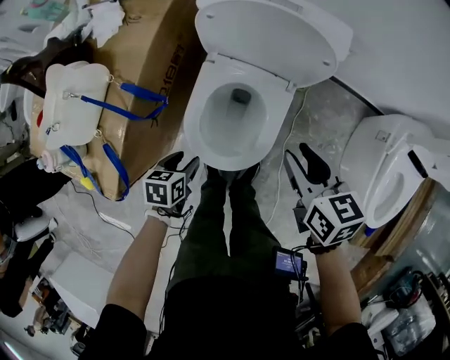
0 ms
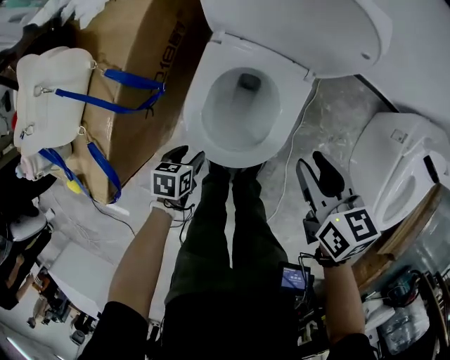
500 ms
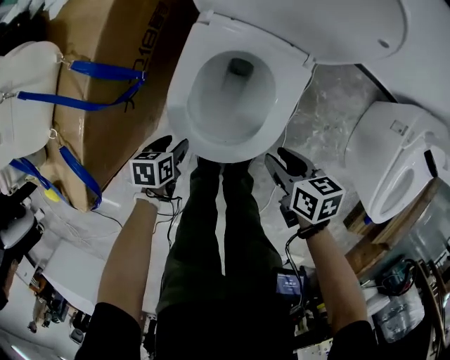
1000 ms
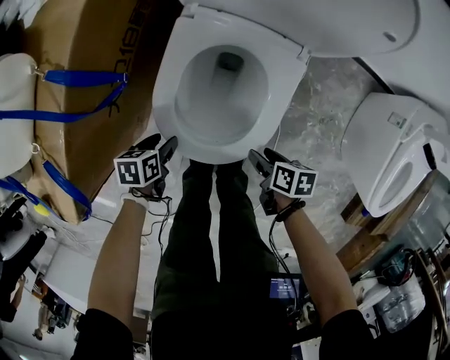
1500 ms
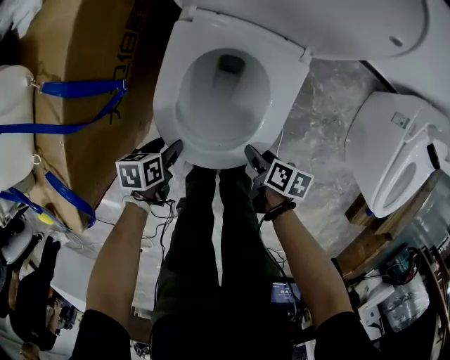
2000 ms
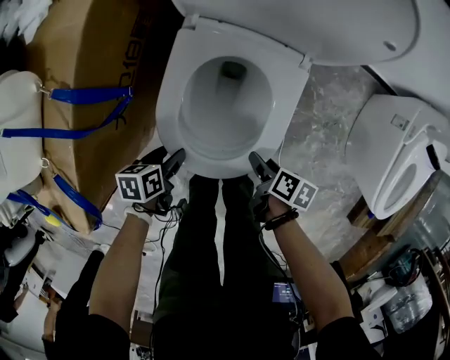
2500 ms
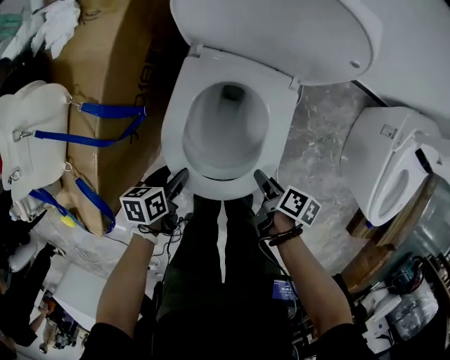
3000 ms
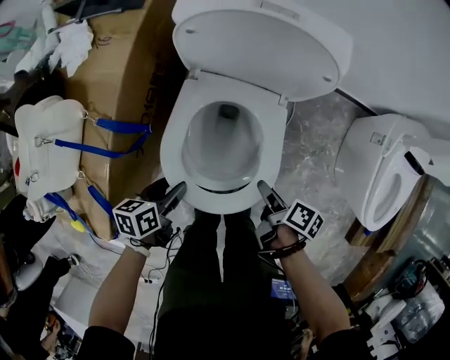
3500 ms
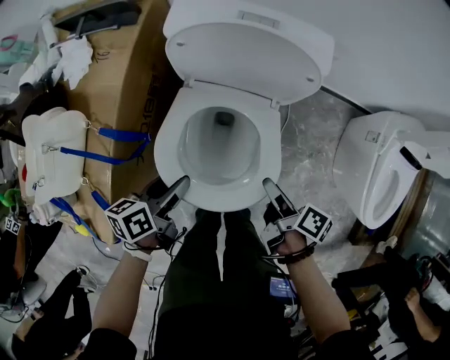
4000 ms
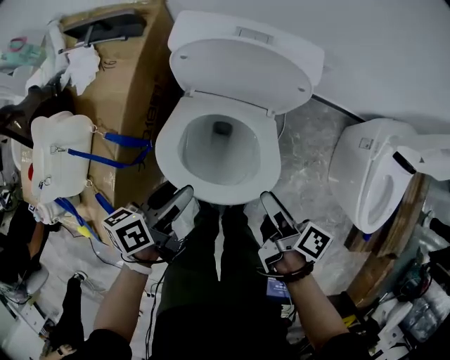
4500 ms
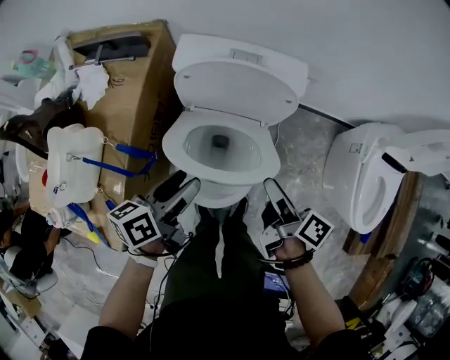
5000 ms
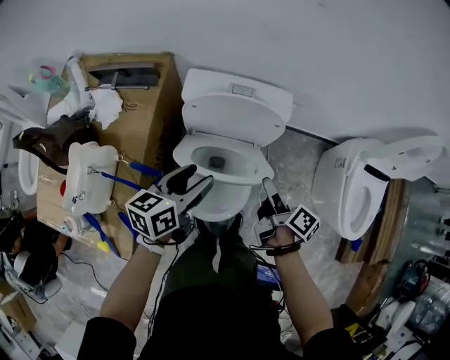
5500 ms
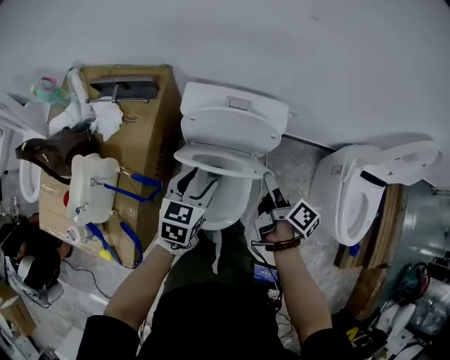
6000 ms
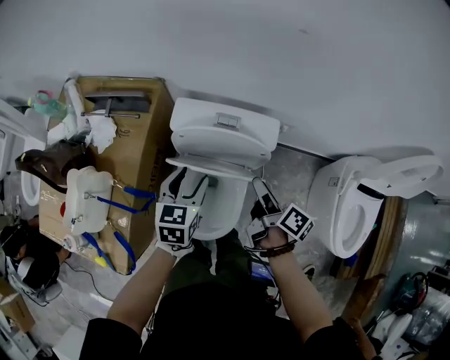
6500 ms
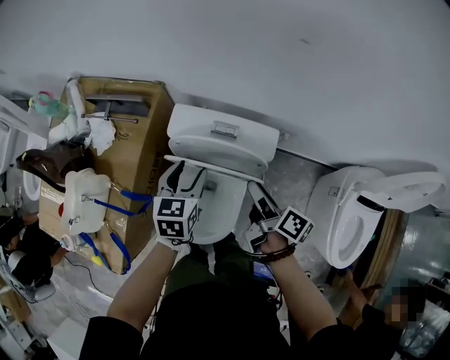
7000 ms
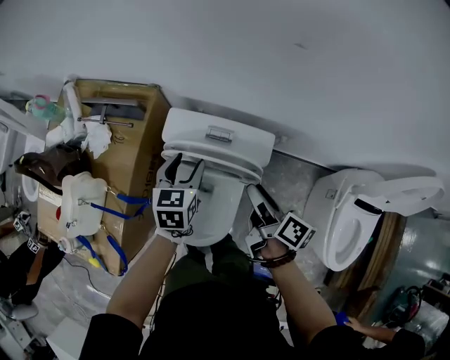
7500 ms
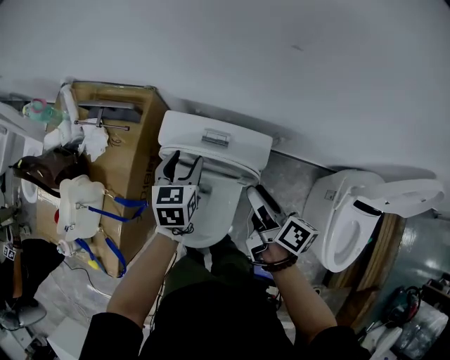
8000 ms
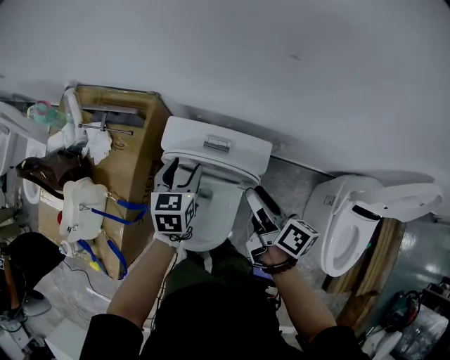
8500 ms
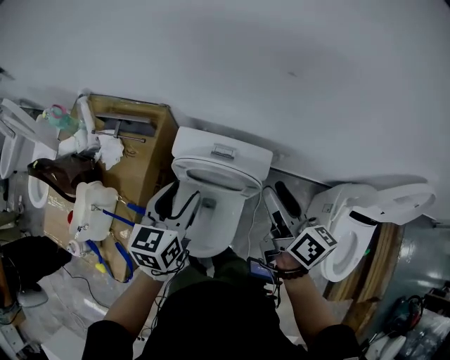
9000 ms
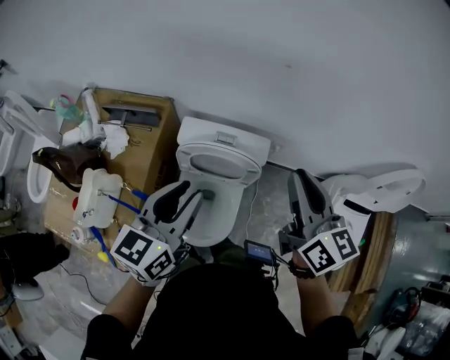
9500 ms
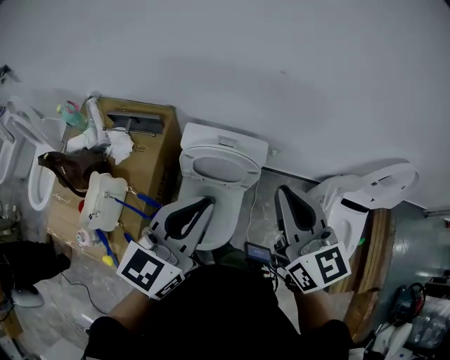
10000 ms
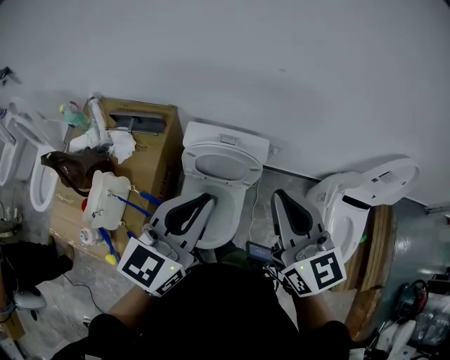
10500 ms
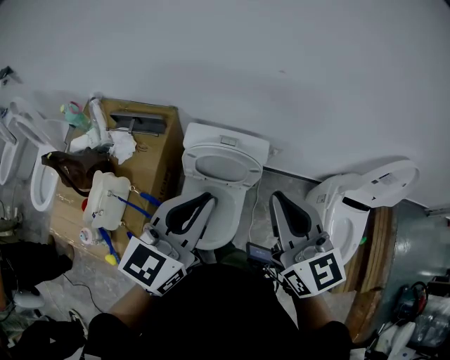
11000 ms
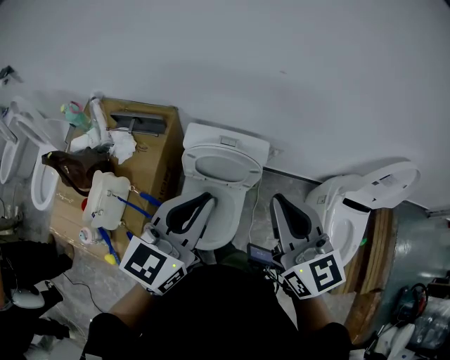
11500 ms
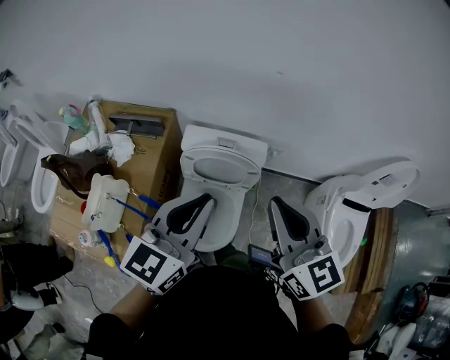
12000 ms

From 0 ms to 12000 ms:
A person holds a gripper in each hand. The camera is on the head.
From 0 ms to 2000 ms: The right gripper travels downward by approximately 35 cm, rolls clockwise, seen from behind, by approximately 40 degrees, and opens up. The left gripper moves downward, some 20 cm.
From 2000 ms to 4000 ms: The grippers both shift upward by some 25 cm. The right gripper rotates about 30 degrees. The left gripper turns by approximately 30 degrees.
From 4000 ms to 6000 ms: The two grippers go roughly 20 cm upward and forward. The left gripper rotates around the line of its fingers by roughly 50 degrees, clockwise from behind; the right gripper swivels roughly 20 degrees.
From 6000 ms to 8000 ms: The left gripper moves forward, roughly 15 cm, and rotates roughly 20 degrees, while the right gripper heads forward and upward, covering some 10 cm, and rotates about 20 degrees.
From 8000 ms to 10000 ms: The right gripper shifts roughly 30 cm upward, rolls counterclockwise, seen from behind, by roughly 60 degrees, and closes up. The left gripper goes some 40 cm upward and backward, points its fingers roughly 30 degrees further upward, and closes up.
From 10000 ms to 12000 ms: The grippers stay close to where they were, moving slightly.

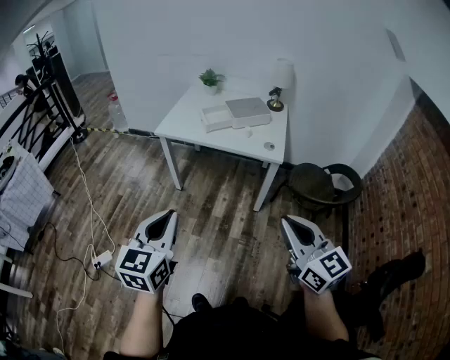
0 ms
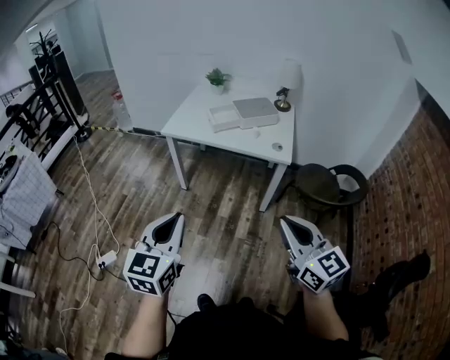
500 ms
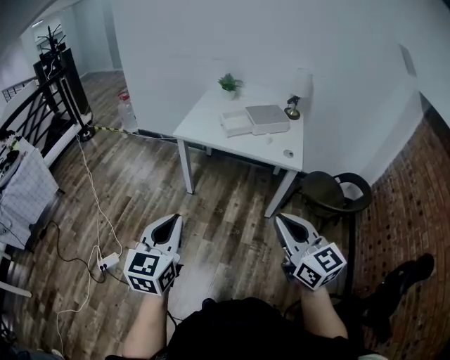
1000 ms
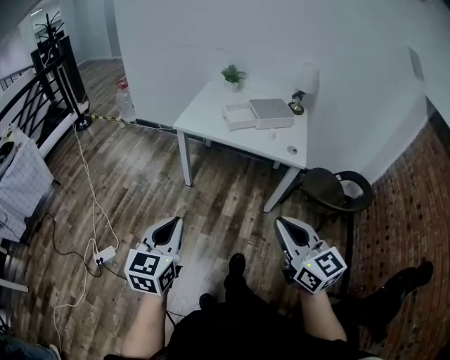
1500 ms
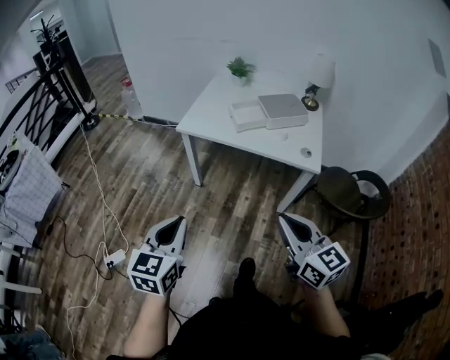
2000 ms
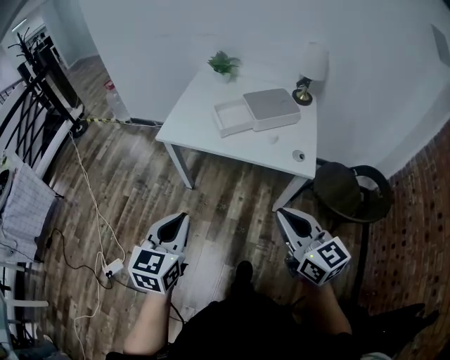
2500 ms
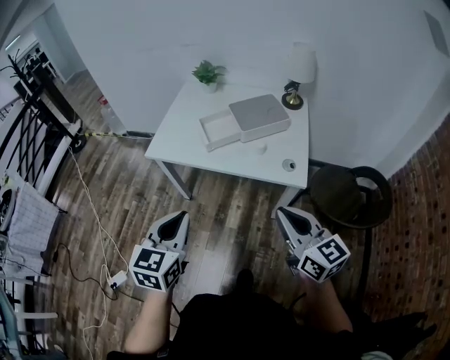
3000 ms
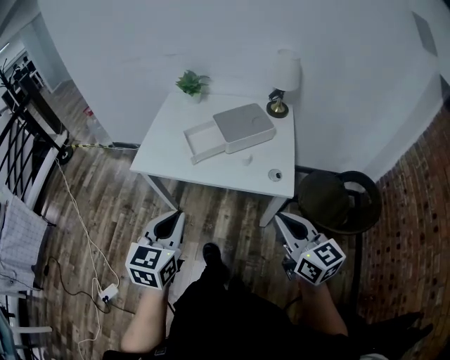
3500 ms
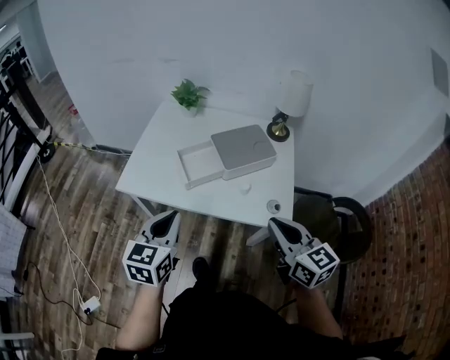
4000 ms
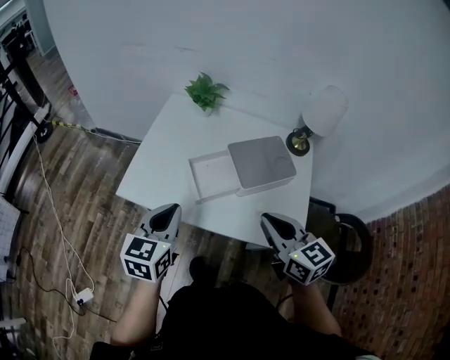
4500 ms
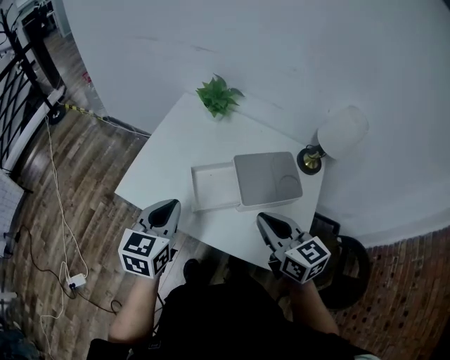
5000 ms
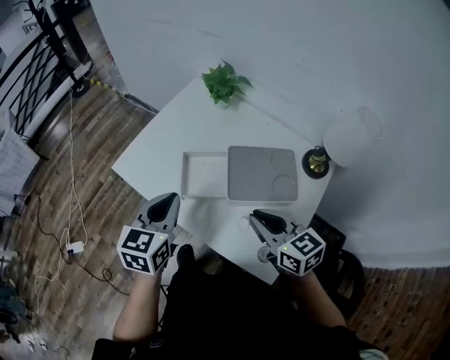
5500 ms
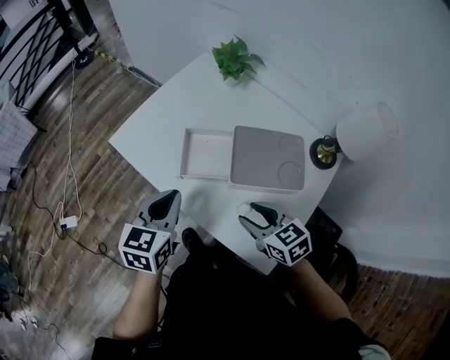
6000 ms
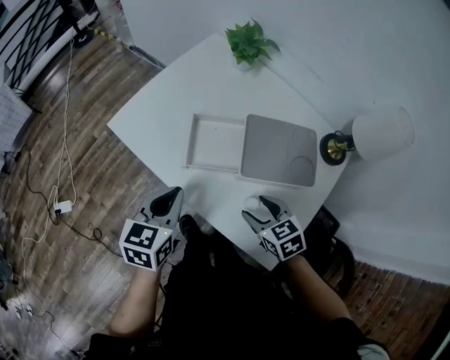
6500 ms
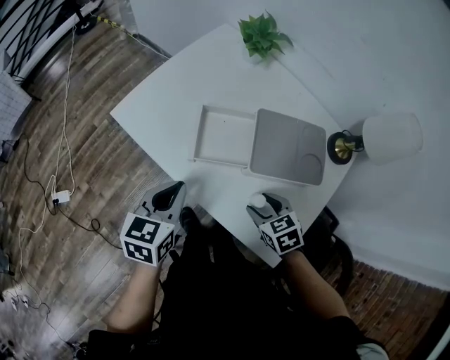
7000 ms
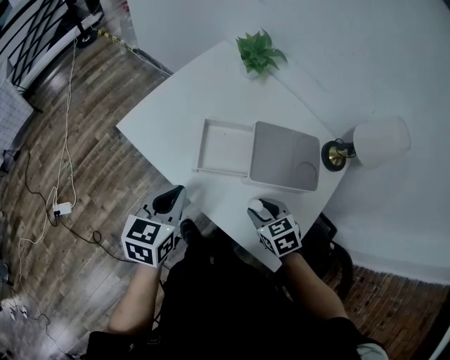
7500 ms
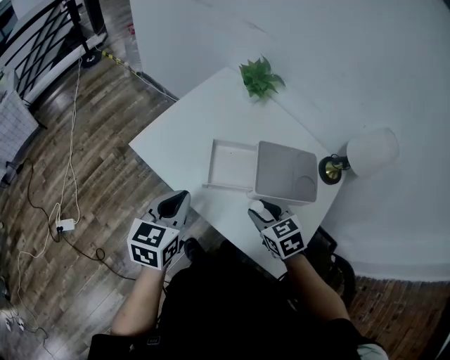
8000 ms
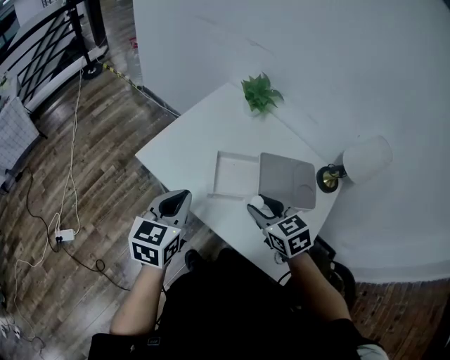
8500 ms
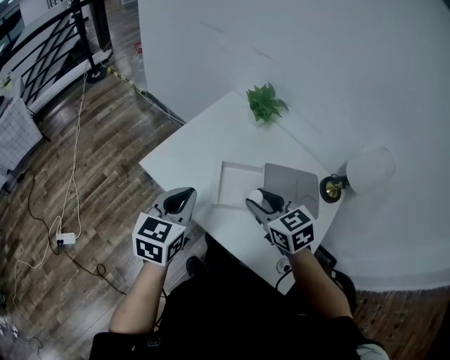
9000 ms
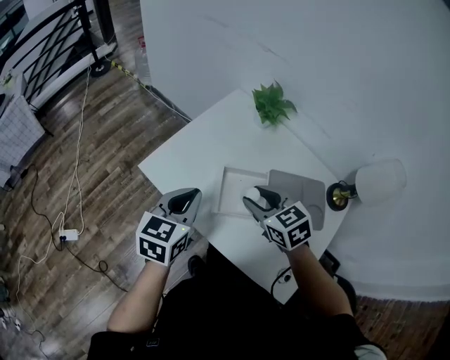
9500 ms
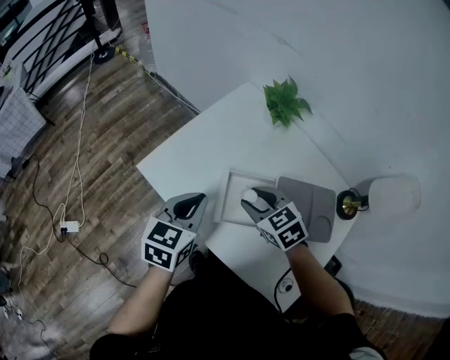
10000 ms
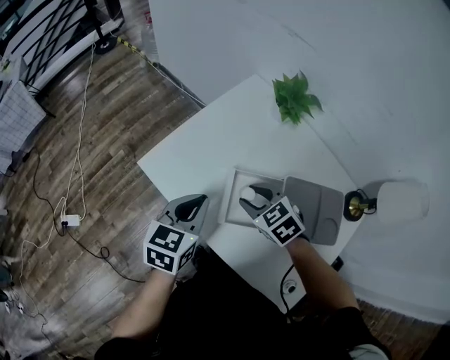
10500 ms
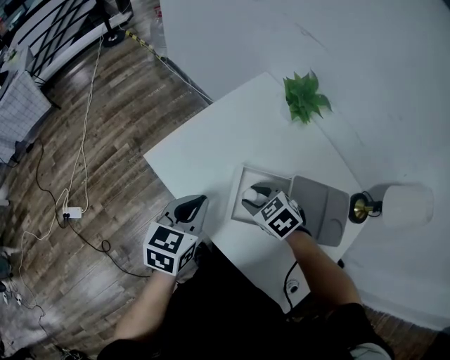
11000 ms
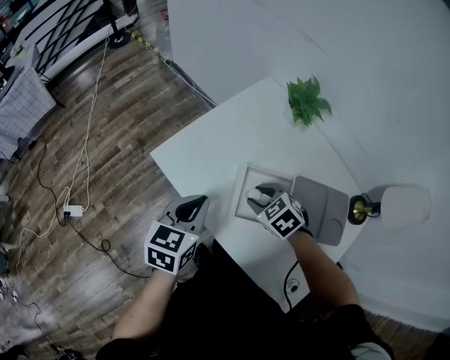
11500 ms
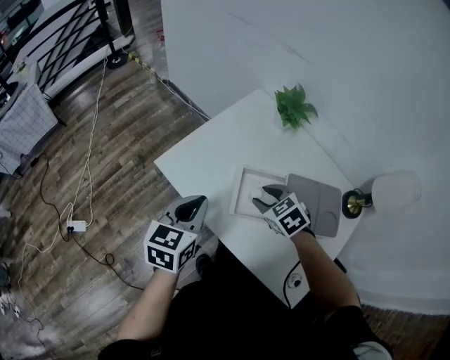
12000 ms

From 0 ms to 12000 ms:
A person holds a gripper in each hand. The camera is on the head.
From 0 ms to 2000 ms: The right gripper goes roughly 20 cm forward and to the left. Meanwhile the left gripper goes approximately 20 cm forward, to the left and downward.
From 2000 ms to 4000 ms: Both grippers move forward and to the right, about 40 cm.
From 4000 ms to 6000 ms: The right gripper moves roughly 30 cm, turns by roughly 50 degrees, and opens. The left gripper changes place by roughly 20 cm, and turns by about 30 degrees.
From 6000 ms to 8000 ms: The two grippers go some 5 cm to the left. The right gripper reaches approximately 10 cm downward, then returns.
From 8000 ms to 10000 ms: The right gripper is displaced forward and to the left by some 20 cm, while the left gripper shifts approximately 10 cm forward.
From 10000 ms to 12000 ms: The left gripper shifts about 5 cm to the left.

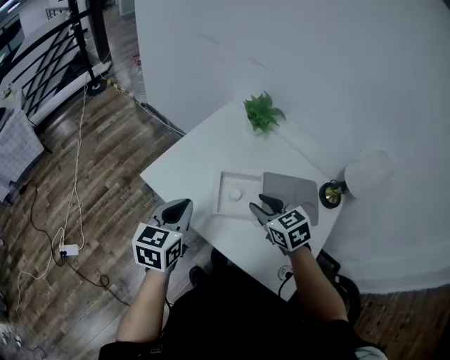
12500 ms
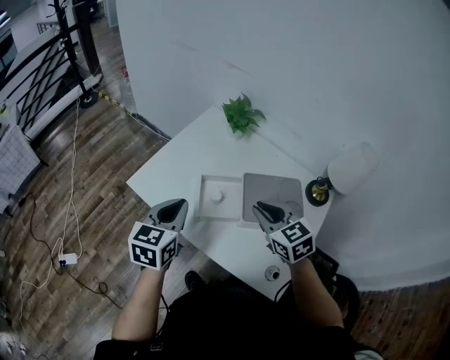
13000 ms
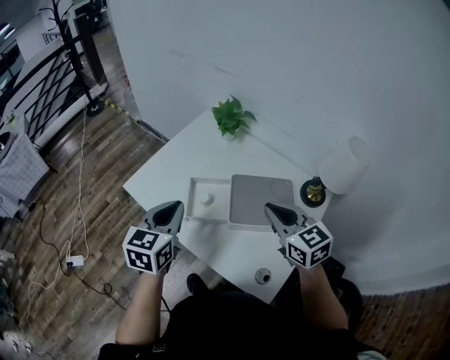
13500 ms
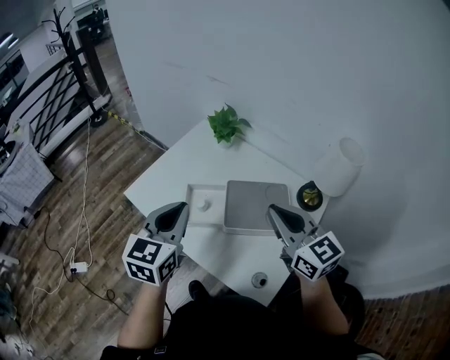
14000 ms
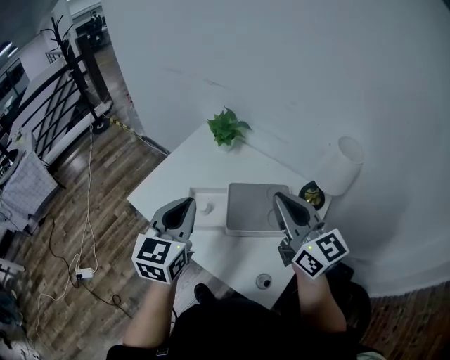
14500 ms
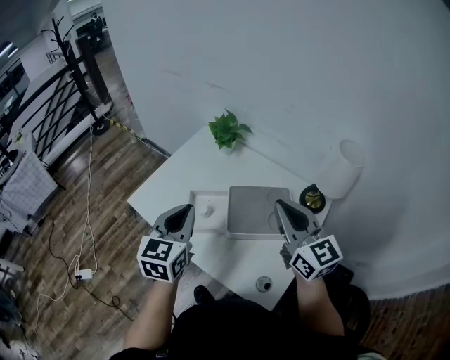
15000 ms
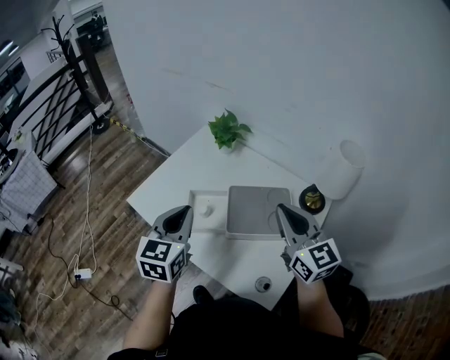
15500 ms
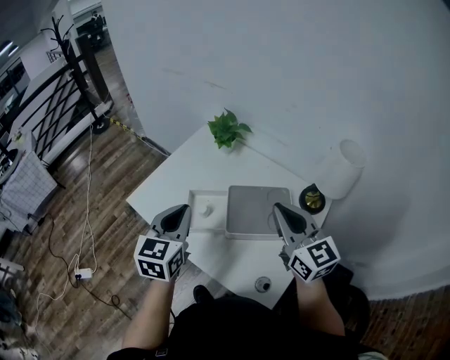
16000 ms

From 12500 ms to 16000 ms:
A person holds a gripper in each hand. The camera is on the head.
From 12500 ms to 14500 ms: The right gripper goes some 30 cm upward and to the right, tips its fingers upward by about 40 degrees, and closes up, while the left gripper travels to the right and upward by about 20 cm.
From 14500 ms to 16000 ms: There are only small adjustments of the grippers.
